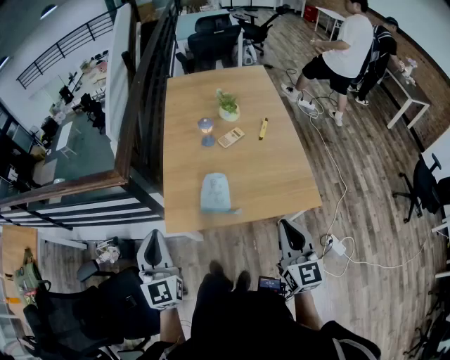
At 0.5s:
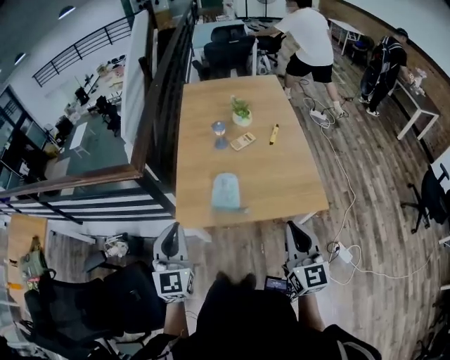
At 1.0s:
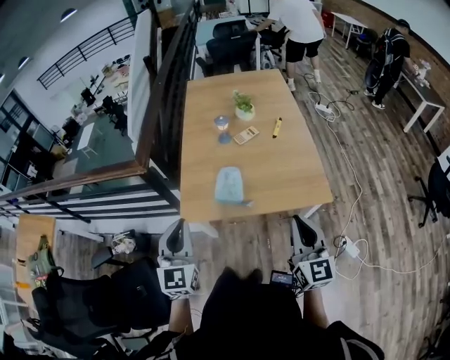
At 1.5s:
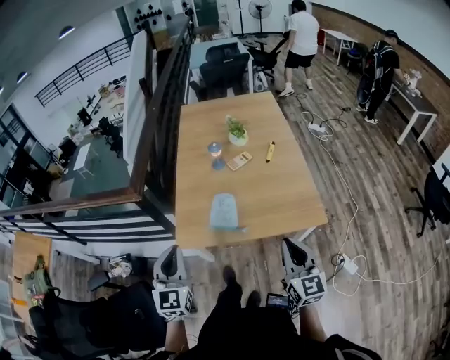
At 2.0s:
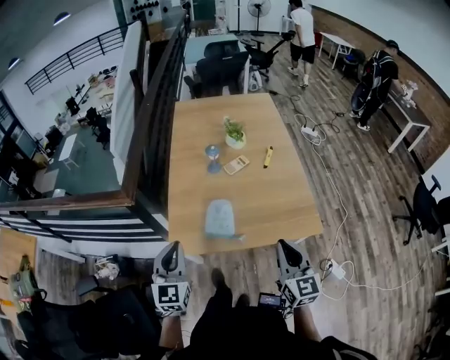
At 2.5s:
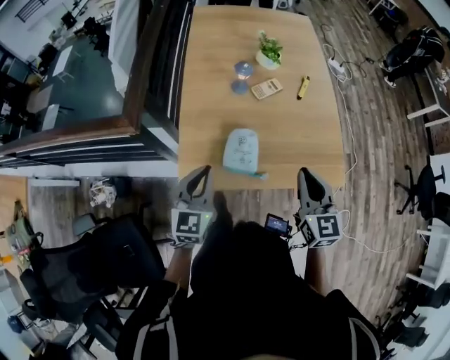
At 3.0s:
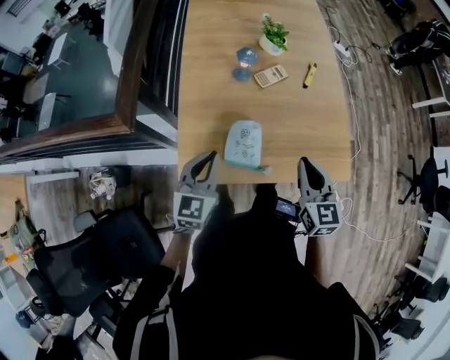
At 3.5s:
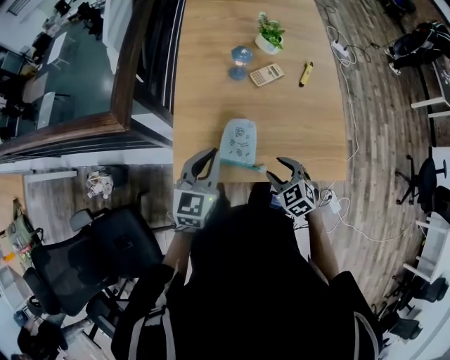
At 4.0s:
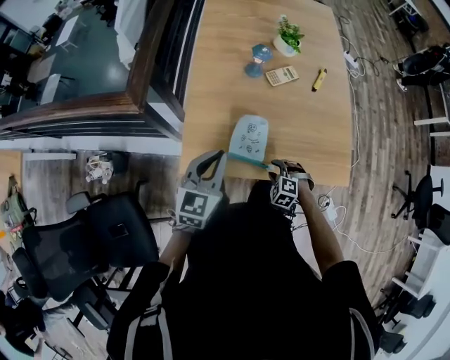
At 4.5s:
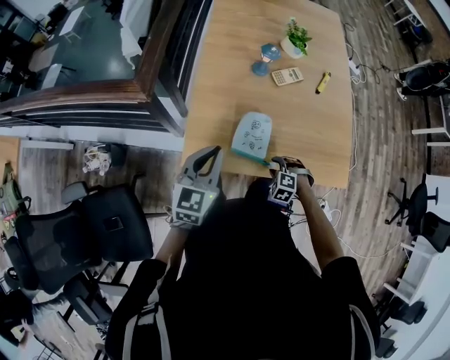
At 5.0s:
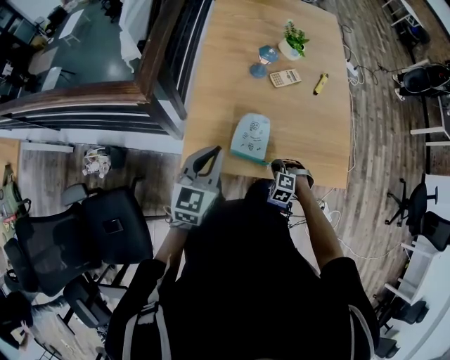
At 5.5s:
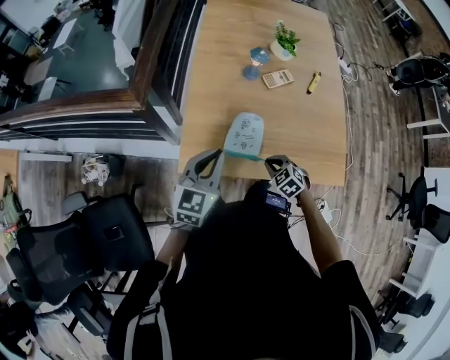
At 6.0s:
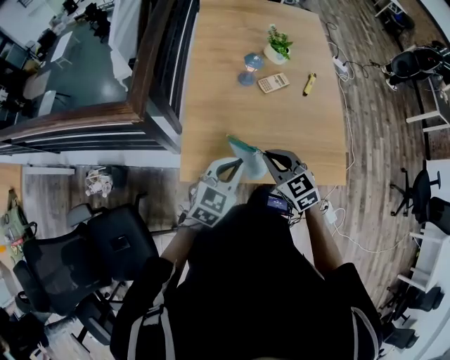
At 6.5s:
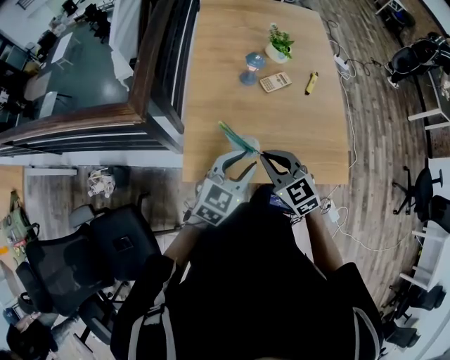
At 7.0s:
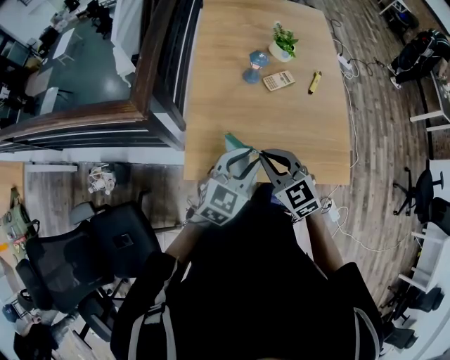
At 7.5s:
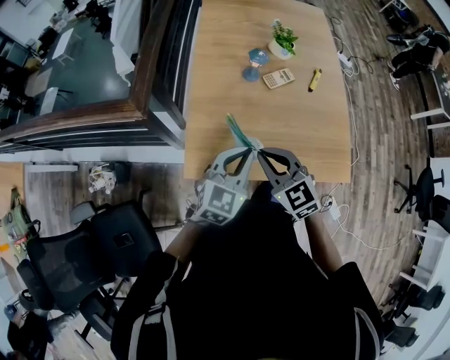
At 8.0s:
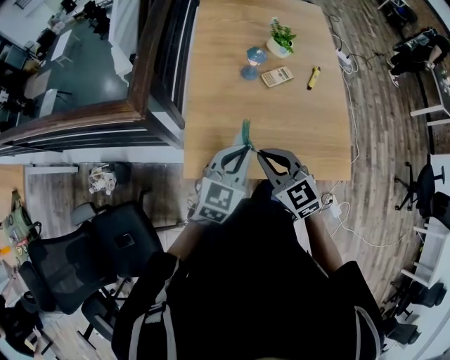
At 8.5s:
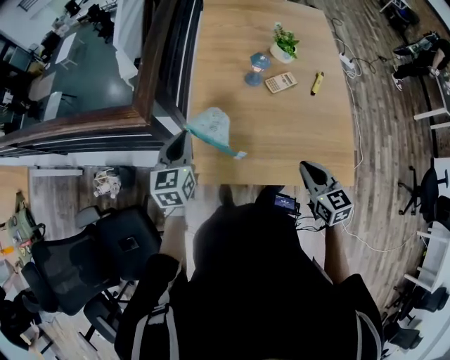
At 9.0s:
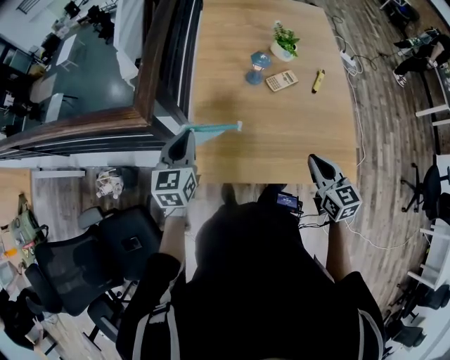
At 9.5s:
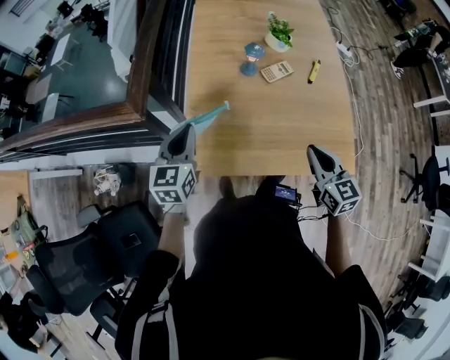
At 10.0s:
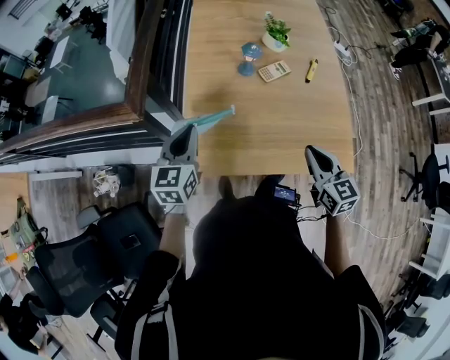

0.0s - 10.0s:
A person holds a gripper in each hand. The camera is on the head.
0.0s - 2.0s: The left gripper changes place by approximately 5 cm.
2.0s - 4.0s: The left gripper heads forward and downward, covering roughly 15 cm, and turns by approximately 20 degrees. The right gripper moves downward, some 35 cm, angles its fingers downward, by about 60 degrees, and opens.
4.0s - 6.0s: The right gripper is displaced upward by approximately 20 cm, tilts its fingers about 30 degrees upward, and closes; the left gripper is displaced to the right by about 5 cm.
6.0s - 8.0s: The left gripper opens and closes again, while the right gripper moves roughly 5 cm.
8.0s - 10.0s: The left gripper travels to the left and forward by approximately 15 cm, and turns by about 20 degrees. Meanwhile the right gripper travels to the right by about 15 cm, and rotates about 30 degrees.

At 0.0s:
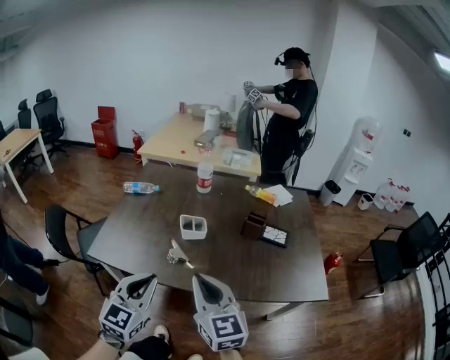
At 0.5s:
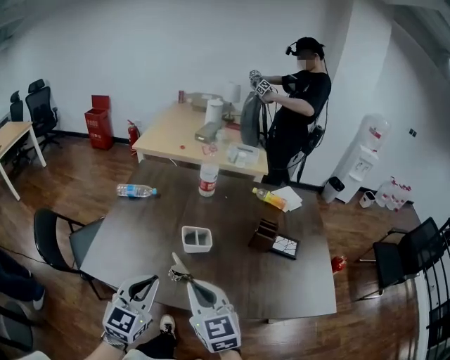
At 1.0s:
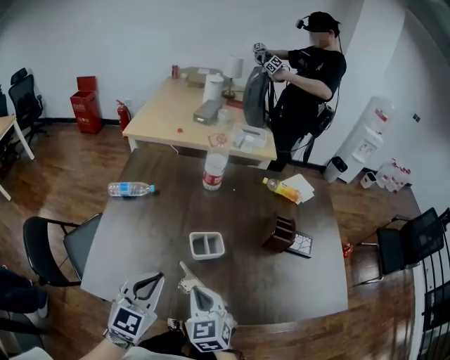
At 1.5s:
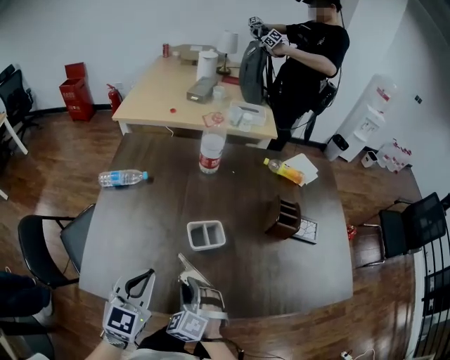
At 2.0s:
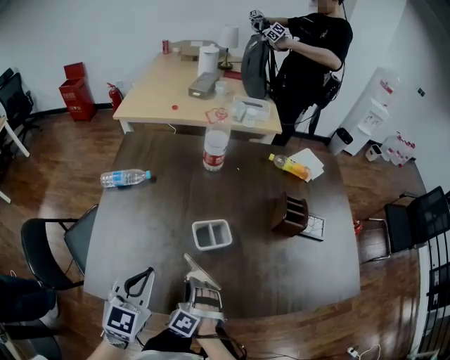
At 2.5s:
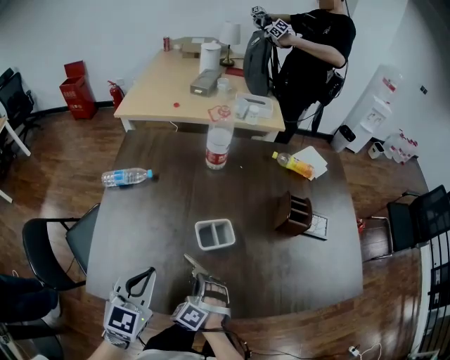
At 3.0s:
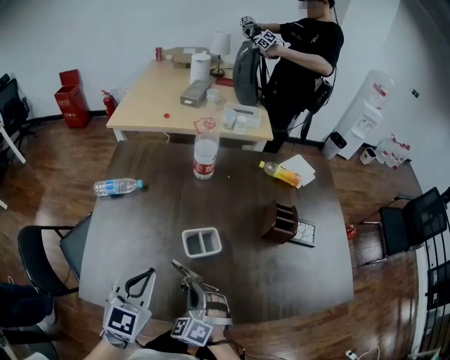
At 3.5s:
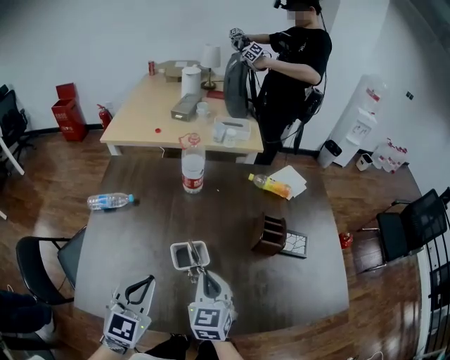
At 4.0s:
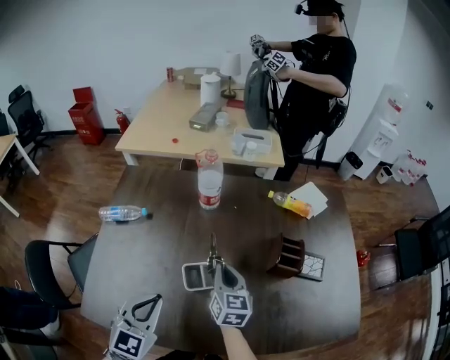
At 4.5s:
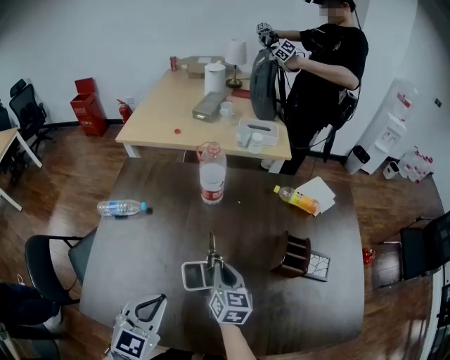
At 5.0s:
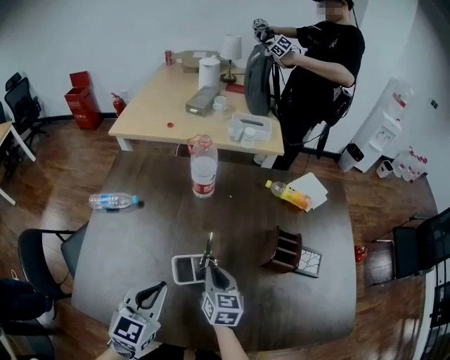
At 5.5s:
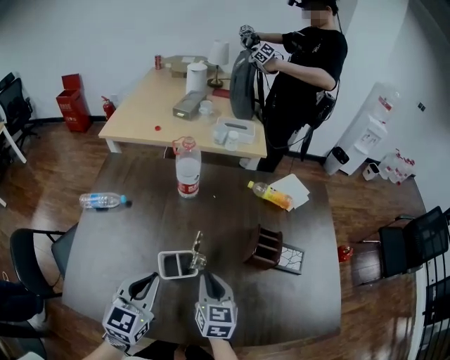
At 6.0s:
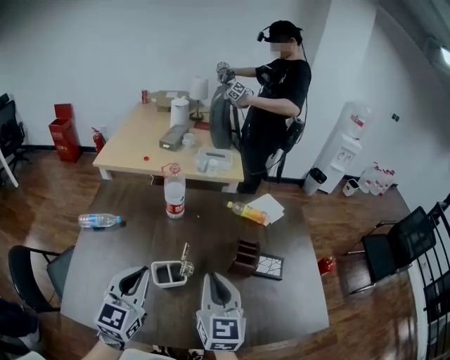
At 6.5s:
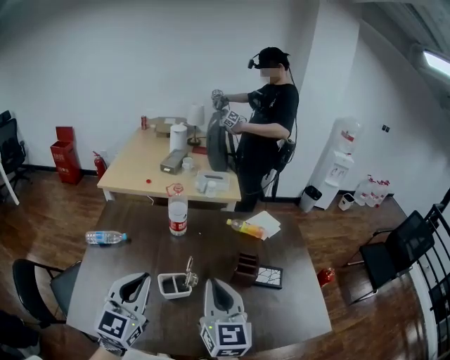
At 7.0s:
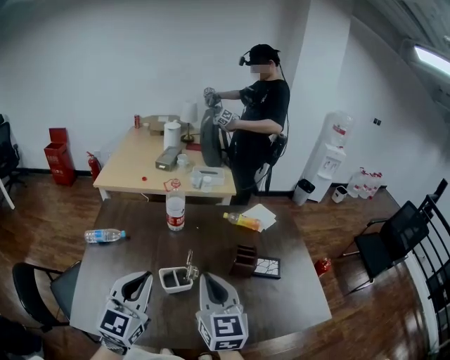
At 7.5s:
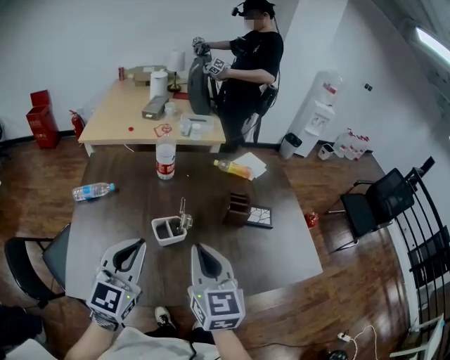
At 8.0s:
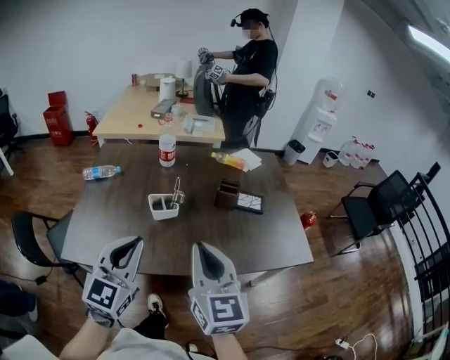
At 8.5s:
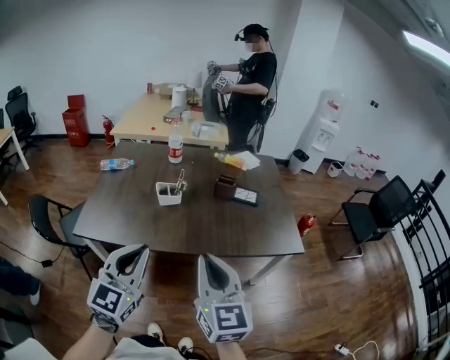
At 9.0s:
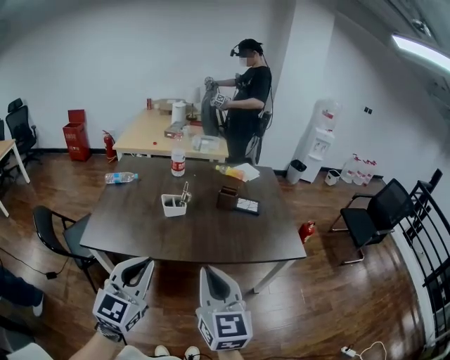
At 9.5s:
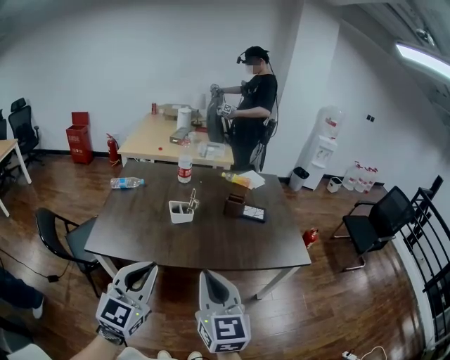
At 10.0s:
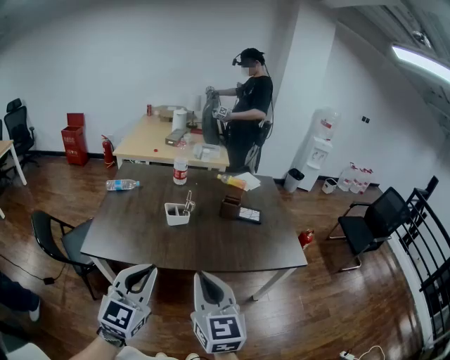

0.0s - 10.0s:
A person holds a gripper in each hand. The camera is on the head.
0.0s - 2.0s: The left gripper goes some 30 cm forward, to the left and downward; the right gripper is displaced downward, forward and to the left by roughly 40 cm, points its fingers some 40 degrees further downward, and opens its fingers.
2.0s - 4.0s: The right gripper travels forward, upward and to the right by roughly 25 cm, rotates around the line of its fingers by approximately 80 degrees, clockwise from behind, and closes its fingers. The left gripper goes roughly 10 cm forward and to the right.
4.0s - 6.0s: The left gripper moves upward and to the right, some 10 cm, while the right gripper travels upward, backward and to the right by some 20 cm, and swivels some 20 degrees.
6.0s - 8.0s: Both grippers travel together backward, roughly 25 cm.
8.0s - 10.0s: The two grippers go roughly 20 cm backward.

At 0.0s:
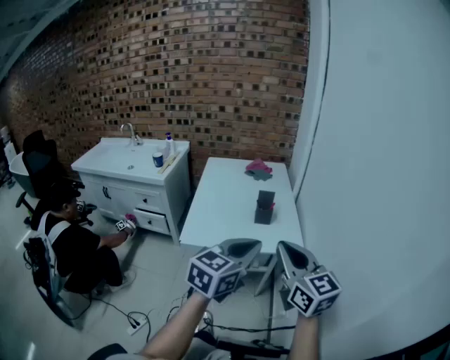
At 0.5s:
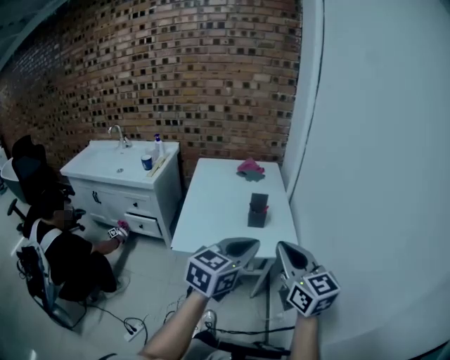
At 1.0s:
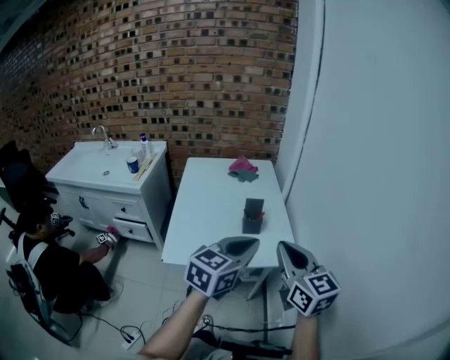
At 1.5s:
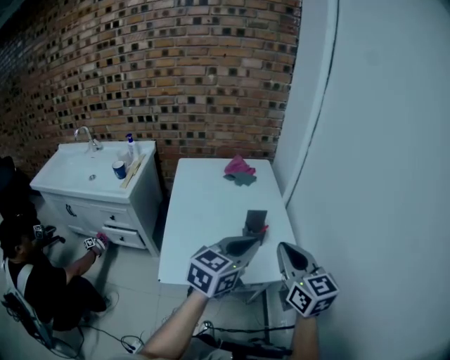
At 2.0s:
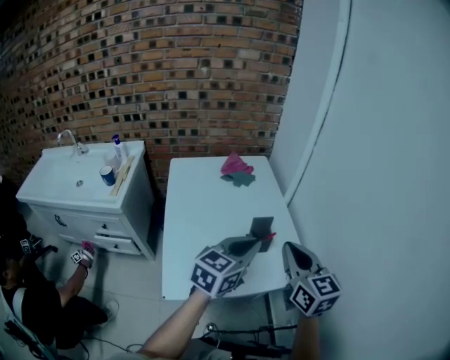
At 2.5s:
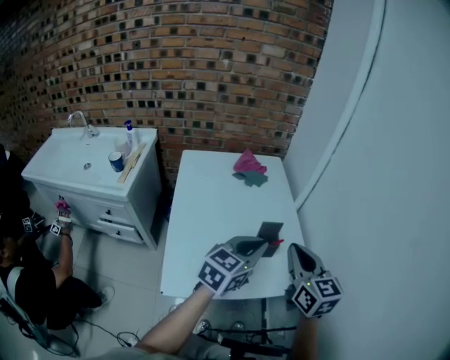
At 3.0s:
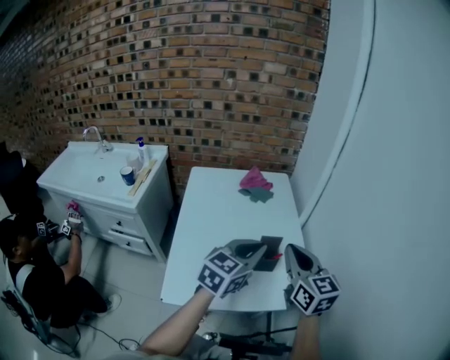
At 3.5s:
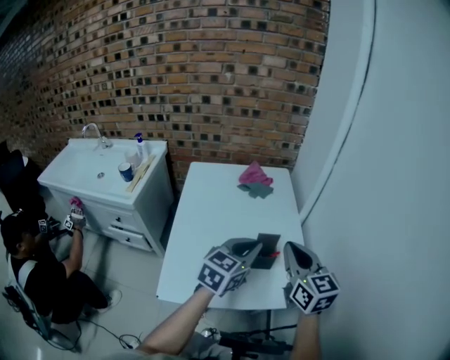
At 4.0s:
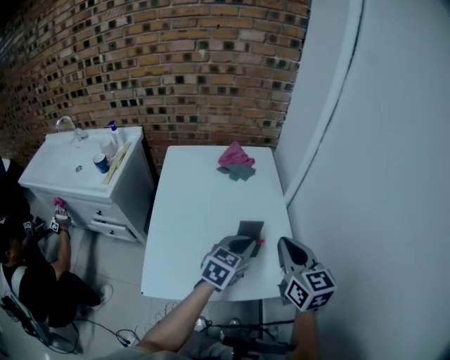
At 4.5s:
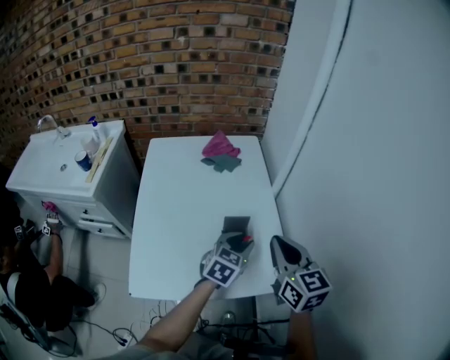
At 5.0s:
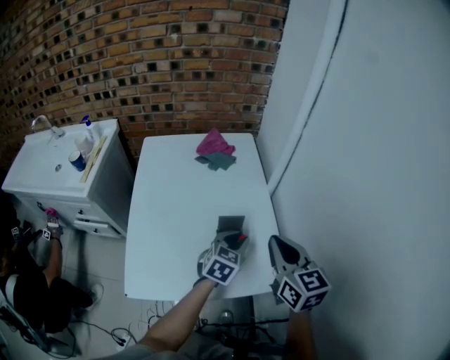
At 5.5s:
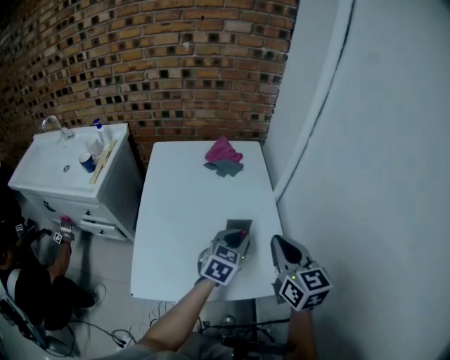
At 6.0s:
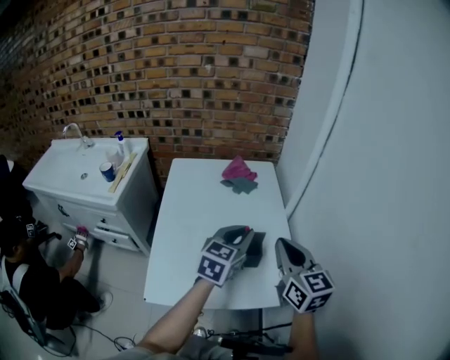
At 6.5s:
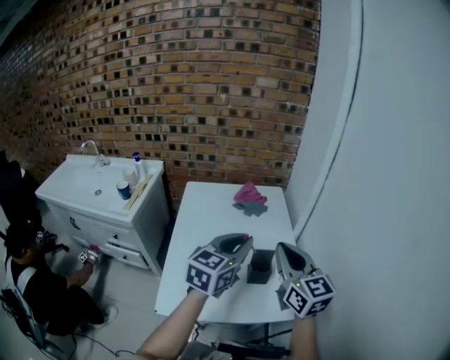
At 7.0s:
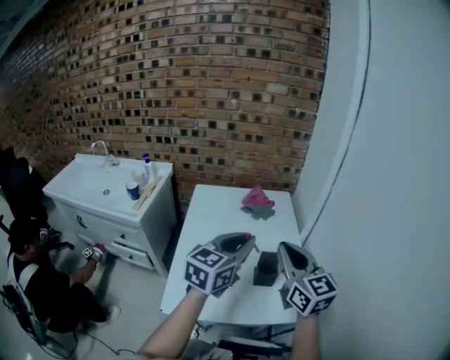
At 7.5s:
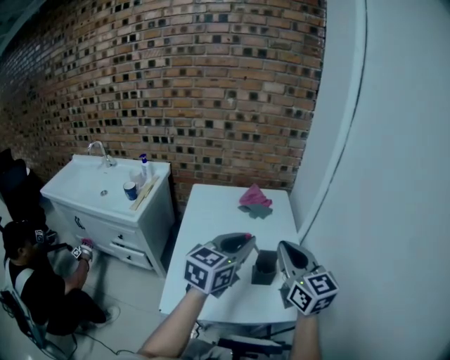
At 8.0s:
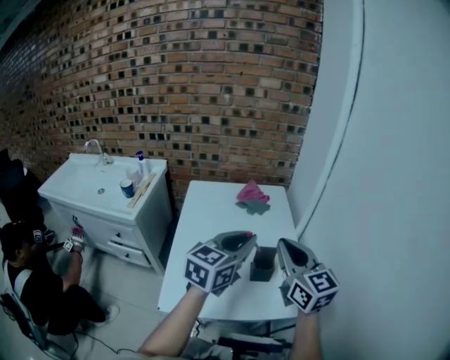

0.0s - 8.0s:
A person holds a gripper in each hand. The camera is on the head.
0.0s - 2.0s: Both grippers travel together forward, roughly 25 cm. The right gripper rotates roughly 20 degrees.
2.0s - 4.0s: The left gripper moves forward and downward, approximately 15 cm; the right gripper travels forward by approximately 10 cm.
4.0s - 6.0s: The left gripper is displaced upward by roughly 10 cm.
6.0s - 8.0s: The right gripper moves to the left and upward, roughly 5 cm; the left gripper moves upward and backward, roughly 10 cm.
